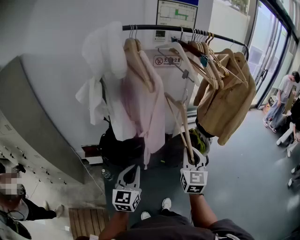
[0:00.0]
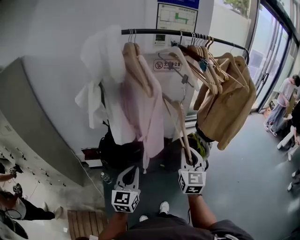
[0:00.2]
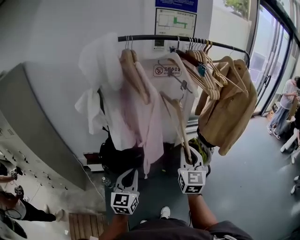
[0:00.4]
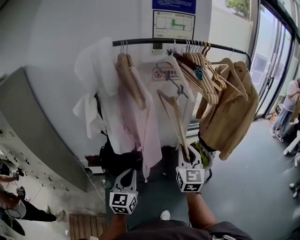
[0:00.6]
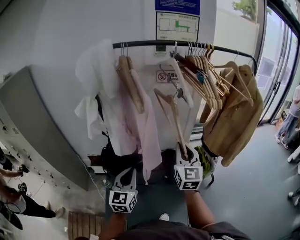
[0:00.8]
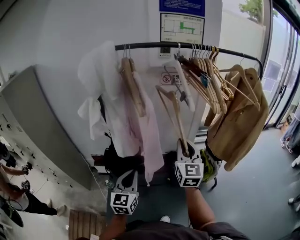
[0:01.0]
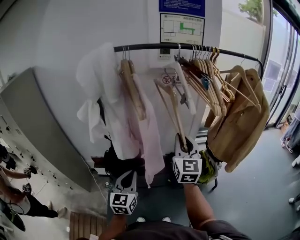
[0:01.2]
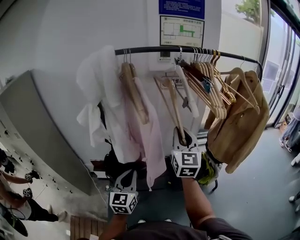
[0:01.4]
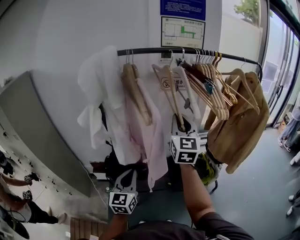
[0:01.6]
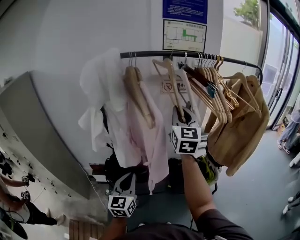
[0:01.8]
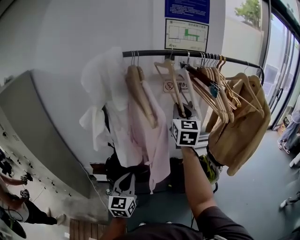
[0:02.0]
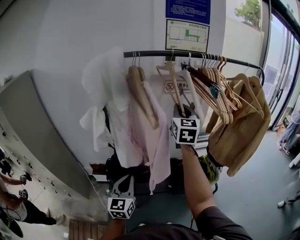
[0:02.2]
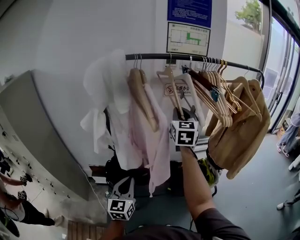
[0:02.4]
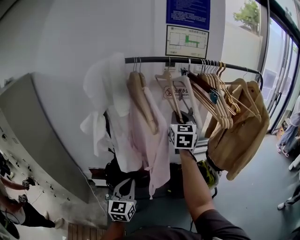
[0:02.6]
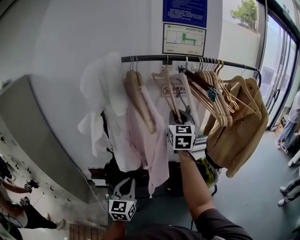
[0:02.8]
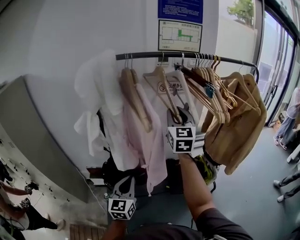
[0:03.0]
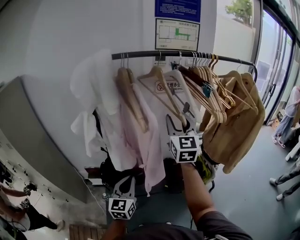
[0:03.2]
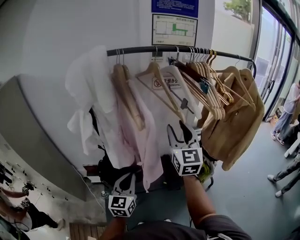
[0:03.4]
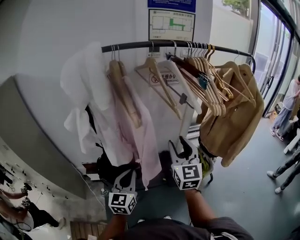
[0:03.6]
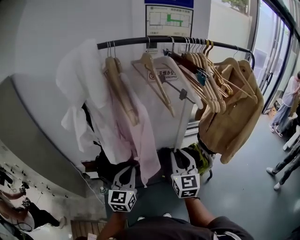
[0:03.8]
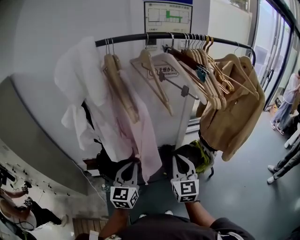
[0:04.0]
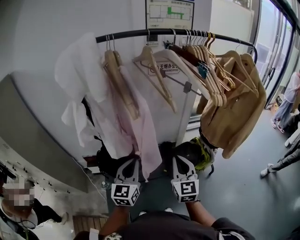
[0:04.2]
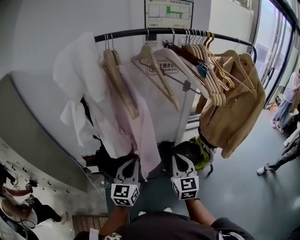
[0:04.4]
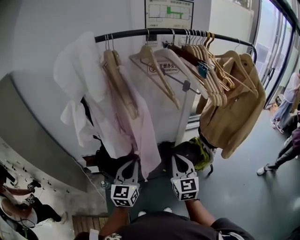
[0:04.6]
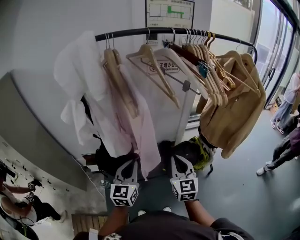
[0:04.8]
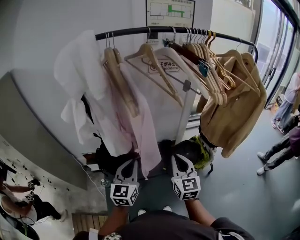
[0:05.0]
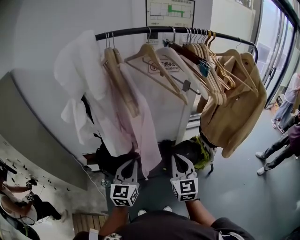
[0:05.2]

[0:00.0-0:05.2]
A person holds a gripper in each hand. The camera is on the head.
0:00.0 to 0:01.8: The right gripper goes about 30 cm forward and upward. The left gripper goes some 10 cm forward.
0:01.8 to 0:03.4: The right gripper is displaced downward by roughly 5 cm, and opens.
0:03.4 to 0:05.2: The right gripper moves downward and backward, some 20 cm, and closes up.

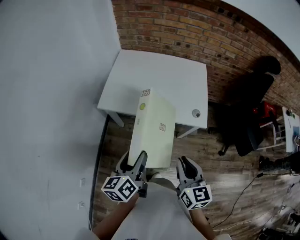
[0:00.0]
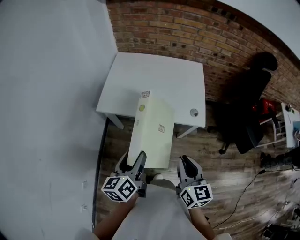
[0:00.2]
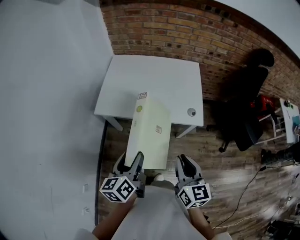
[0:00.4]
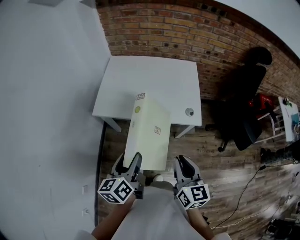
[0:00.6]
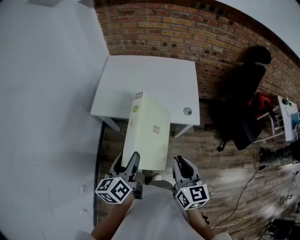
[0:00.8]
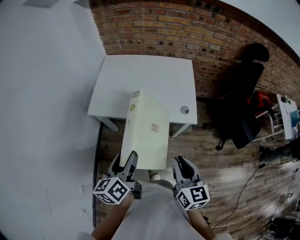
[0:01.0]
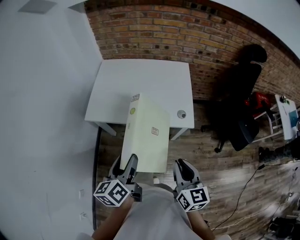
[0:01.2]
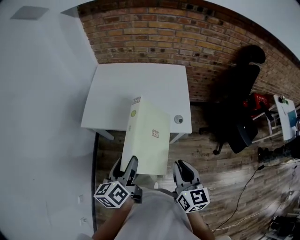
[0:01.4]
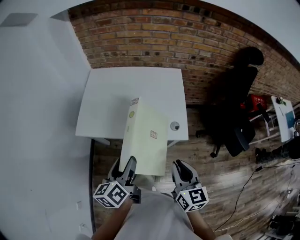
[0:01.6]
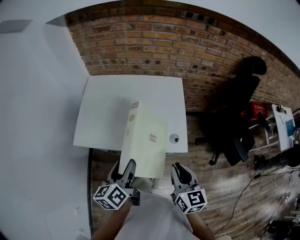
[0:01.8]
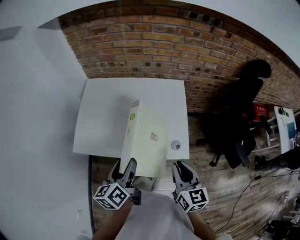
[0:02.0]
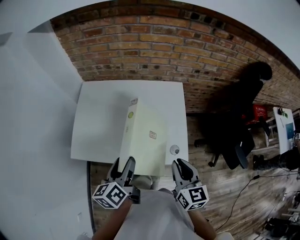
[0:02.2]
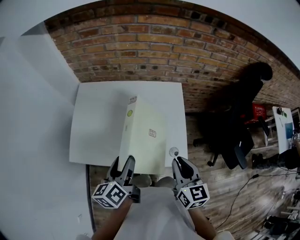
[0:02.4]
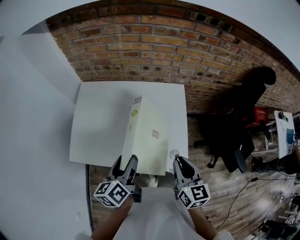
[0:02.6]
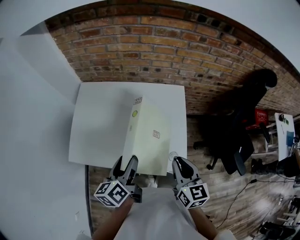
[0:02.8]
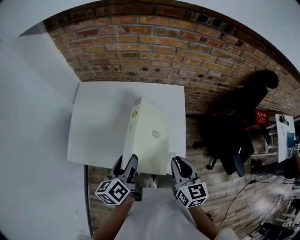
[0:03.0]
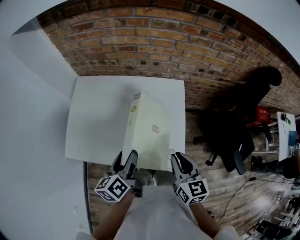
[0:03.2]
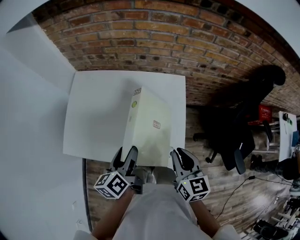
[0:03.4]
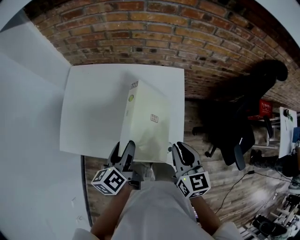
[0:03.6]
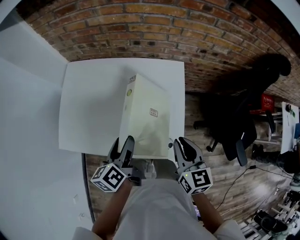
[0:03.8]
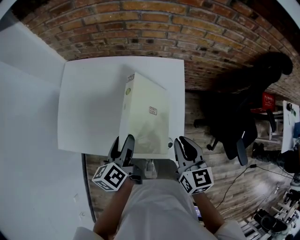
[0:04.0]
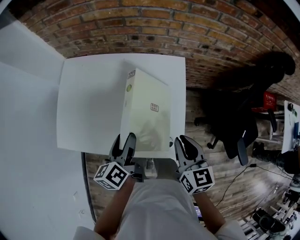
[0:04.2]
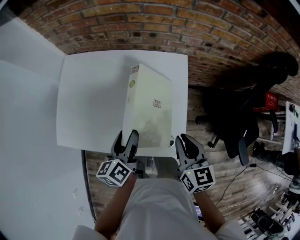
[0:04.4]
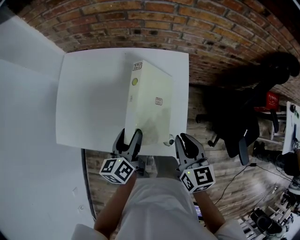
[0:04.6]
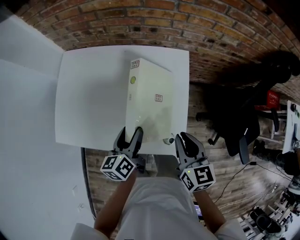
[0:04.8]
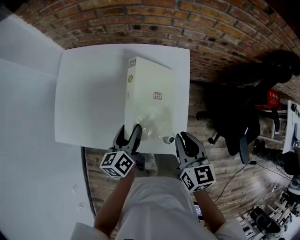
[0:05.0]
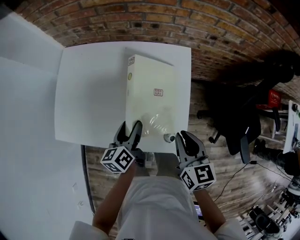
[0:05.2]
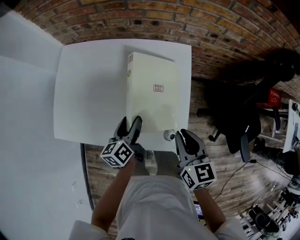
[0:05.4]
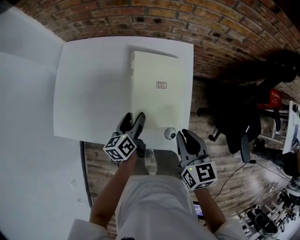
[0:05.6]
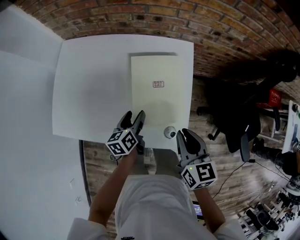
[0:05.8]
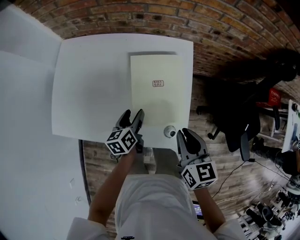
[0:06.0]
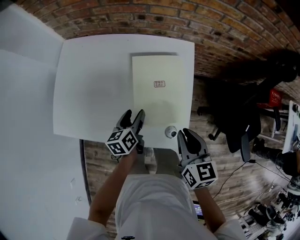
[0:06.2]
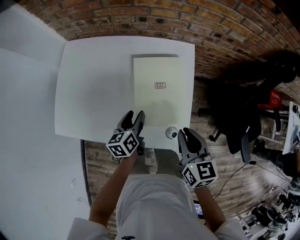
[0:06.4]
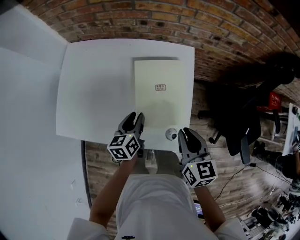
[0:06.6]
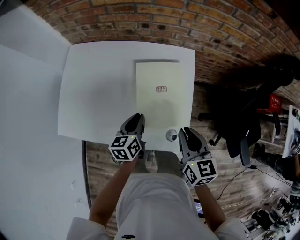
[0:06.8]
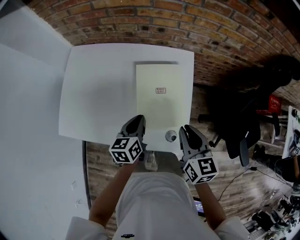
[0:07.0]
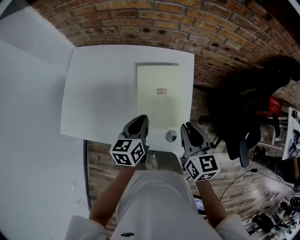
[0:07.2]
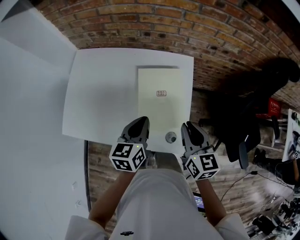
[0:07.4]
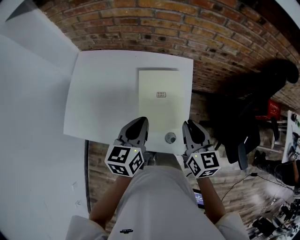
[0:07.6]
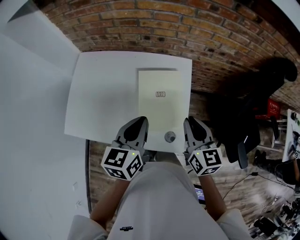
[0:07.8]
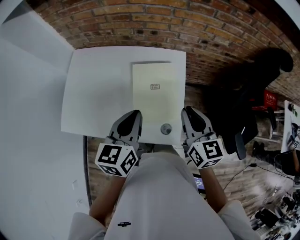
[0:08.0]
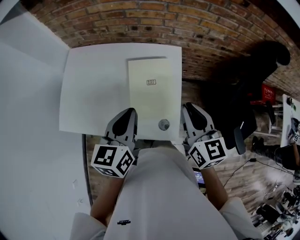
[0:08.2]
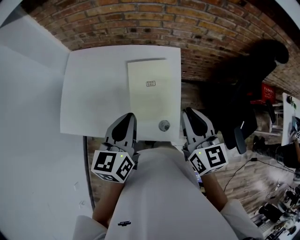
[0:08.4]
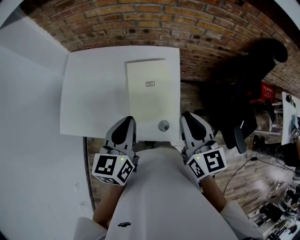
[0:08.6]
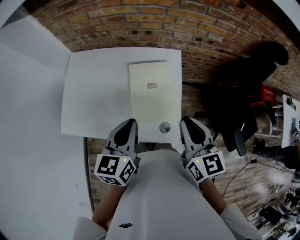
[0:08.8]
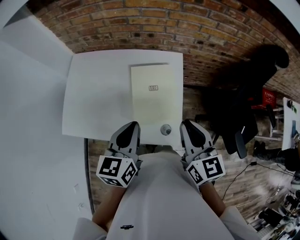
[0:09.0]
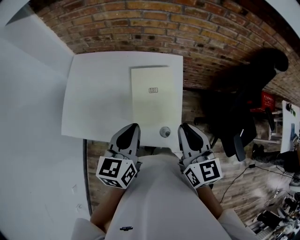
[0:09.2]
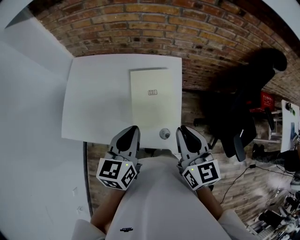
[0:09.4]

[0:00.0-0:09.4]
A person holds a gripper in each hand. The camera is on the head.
0:00.0 to 0:01.6: The left gripper shifts roughly 15 cm forward and to the right, while the right gripper shifts roughly 15 cm to the right and forward.
0:01.6 to 0:03.2: The grippers both shift forward by some 30 cm.
0:03.2 to 0:04.8: The right gripper heads downward, covering some 5 cm. The left gripper heads downward, to the right and forward, covering roughly 15 cm.
0:04.8 to 0:06.2: The left gripper is displaced downward by roughly 10 cm.
0:06.2 to 0:07.8: The right gripper shifts approximately 10 cm upward. The left gripper moves upward, roughly 25 cm, swivels roughly 20 degrees, and closes up.
0:07.8 to 0:09.4: The left gripper travels backward by some 5 cm; the right gripper shifts about 10 cm backward and upward.

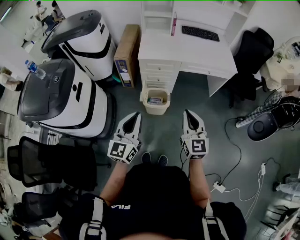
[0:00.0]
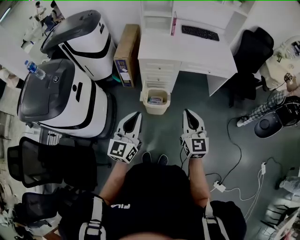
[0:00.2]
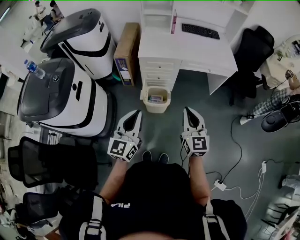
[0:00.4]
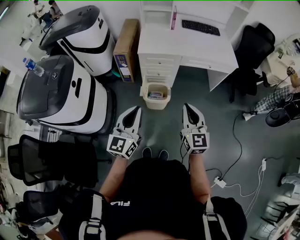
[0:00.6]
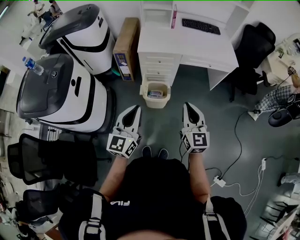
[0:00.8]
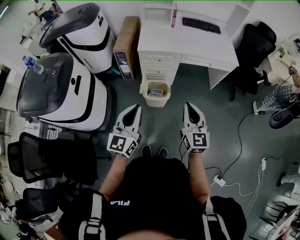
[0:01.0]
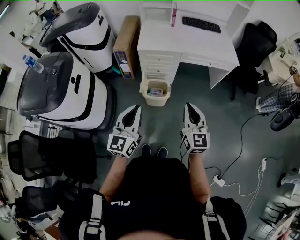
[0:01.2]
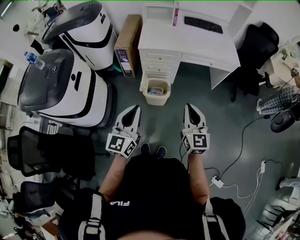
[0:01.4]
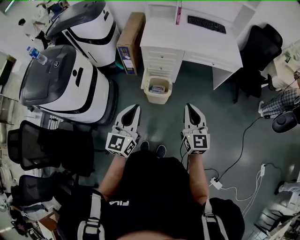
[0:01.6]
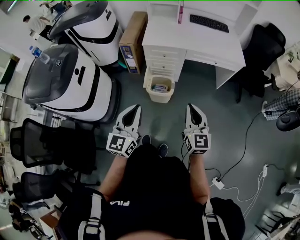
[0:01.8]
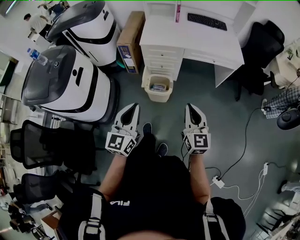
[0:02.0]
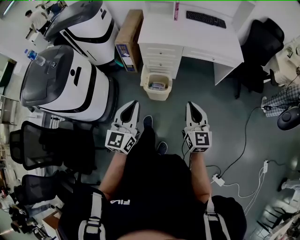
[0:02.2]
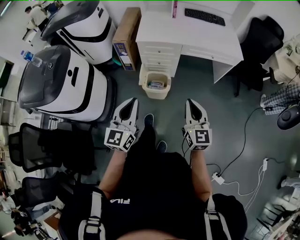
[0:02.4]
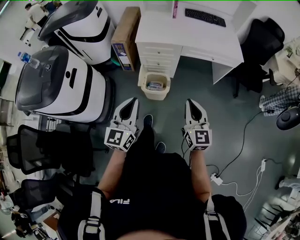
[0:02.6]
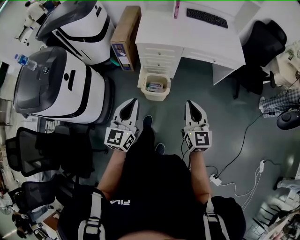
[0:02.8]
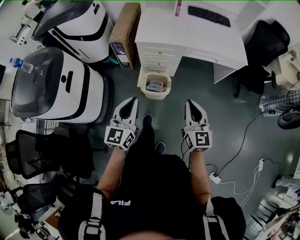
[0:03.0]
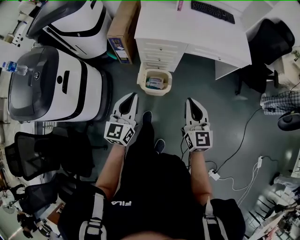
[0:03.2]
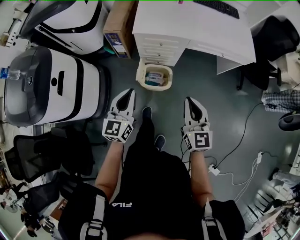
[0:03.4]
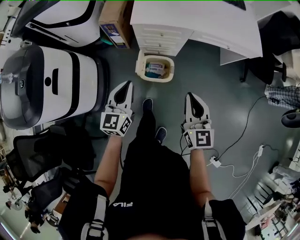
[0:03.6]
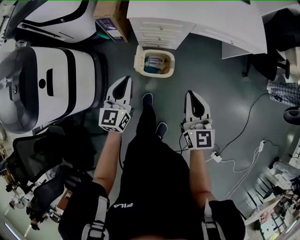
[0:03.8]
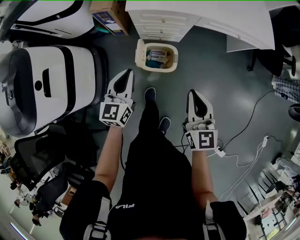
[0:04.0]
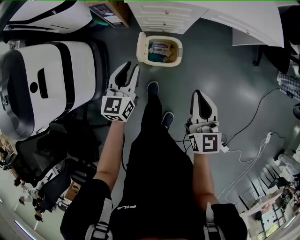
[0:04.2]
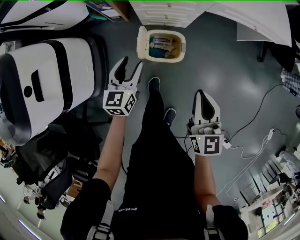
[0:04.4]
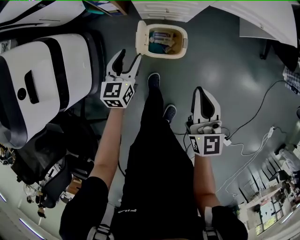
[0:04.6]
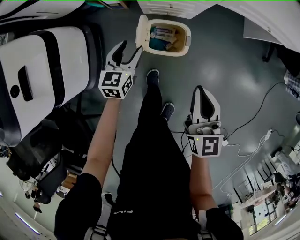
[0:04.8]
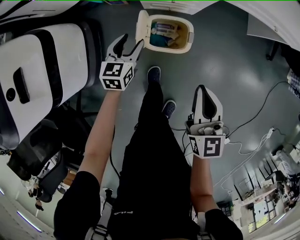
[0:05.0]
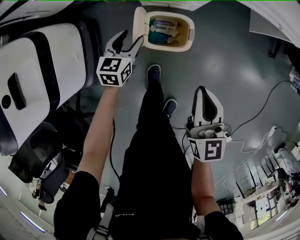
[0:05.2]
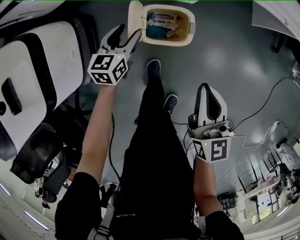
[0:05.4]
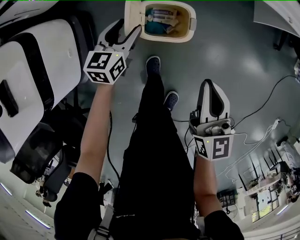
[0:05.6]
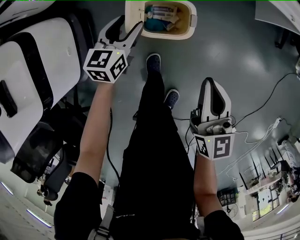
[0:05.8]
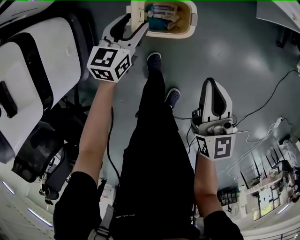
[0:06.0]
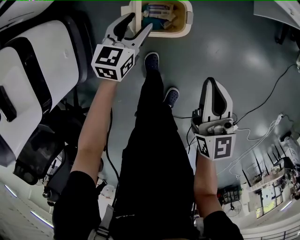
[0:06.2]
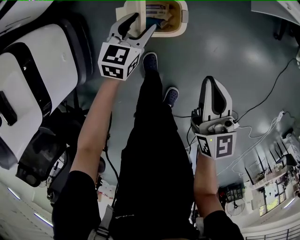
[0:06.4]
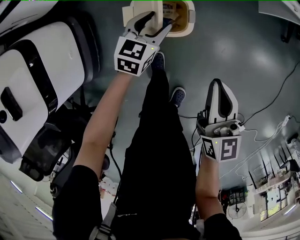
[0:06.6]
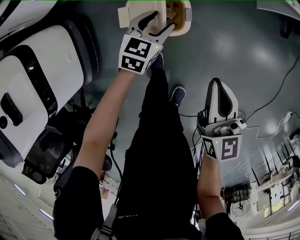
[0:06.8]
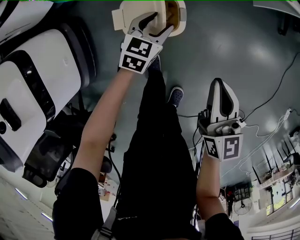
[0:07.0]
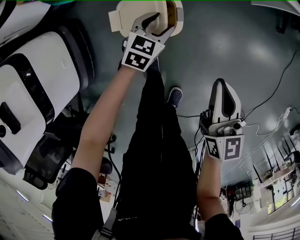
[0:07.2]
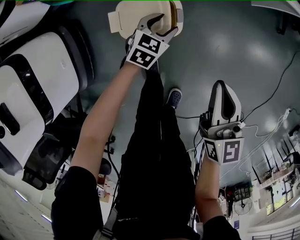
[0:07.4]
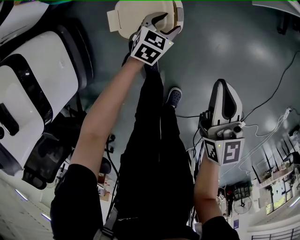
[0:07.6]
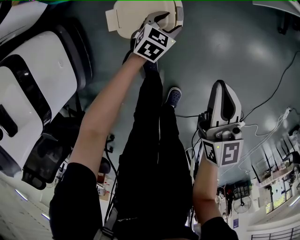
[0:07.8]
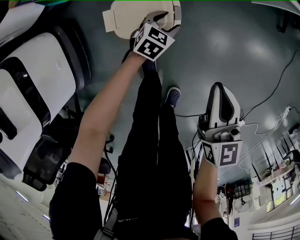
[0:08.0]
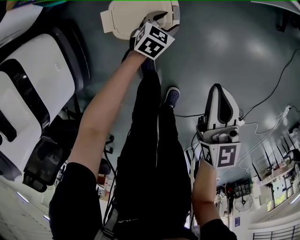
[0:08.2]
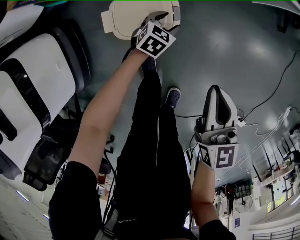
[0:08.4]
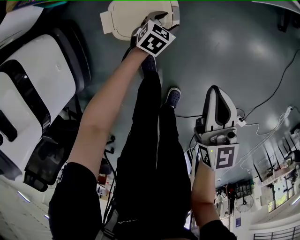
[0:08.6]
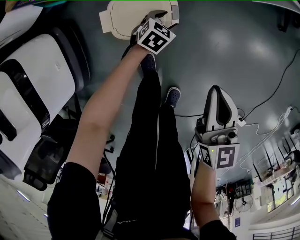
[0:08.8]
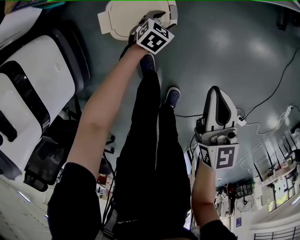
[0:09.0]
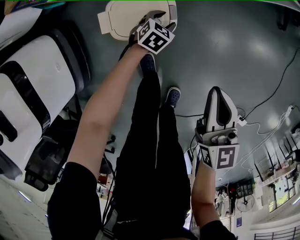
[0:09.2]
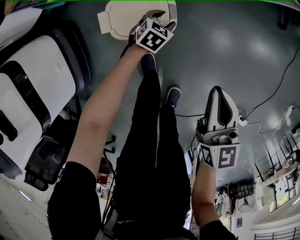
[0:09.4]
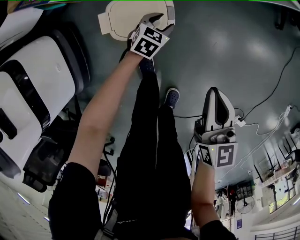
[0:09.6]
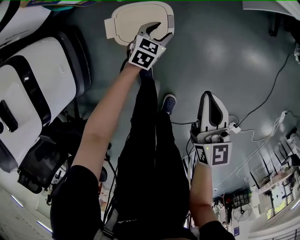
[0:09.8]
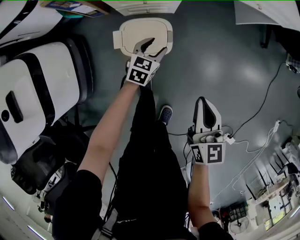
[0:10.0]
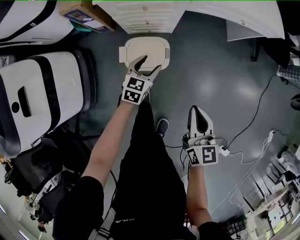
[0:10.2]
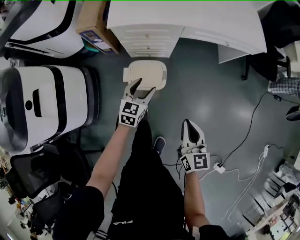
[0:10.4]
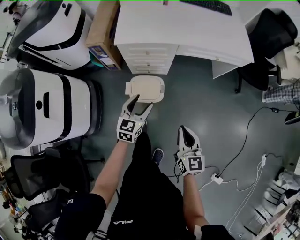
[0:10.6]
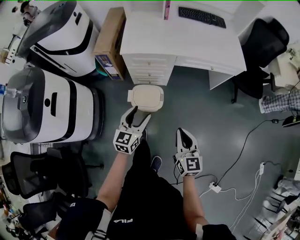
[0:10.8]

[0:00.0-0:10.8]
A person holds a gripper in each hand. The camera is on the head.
0:00.0 to 0:01.6: The right gripper shifts by roughly 5 cm; the left gripper ends up roughly 5 cm from where it was.
0:01.6 to 0:03.0: The right gripper goes roughly 10 cm forward; the left gripper moves forward and downward, about 15 cm.
0:03.0 to 0:04.6: The right gripper is displaced downward and forward by some 30 cm. The left gripper goes about 50 cm downward and forward, rotates some 30 degrees, and opens up.
0:04.6 to 0:06.2: The left gripper moves downward and to the right, about 15 cm, while the right gripper travels downward by approximately 15 cm.
0:06.2 to 0:07.8: The right gripper moves to the right, approximately 5 cm, while the left gripper heads to the right and downward, covering roughly 20 cm, and turns by some 30 degrees.
0:07.8 to 0:09.2: The left gripper goes about 5 cm downward.
0:09.2 to 0:10.8: The right gripper moves upward, some 30 cm, while the left gripper goes some 60 cm upward, and angles its fingers upward, by approximately 40 degrees.
